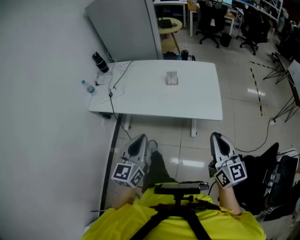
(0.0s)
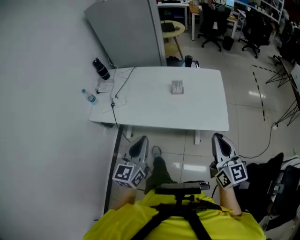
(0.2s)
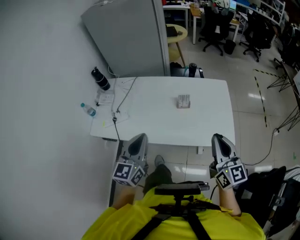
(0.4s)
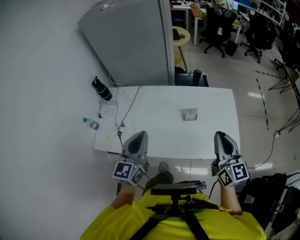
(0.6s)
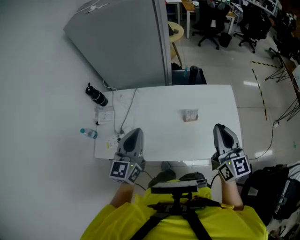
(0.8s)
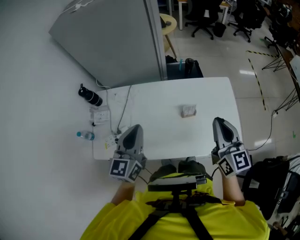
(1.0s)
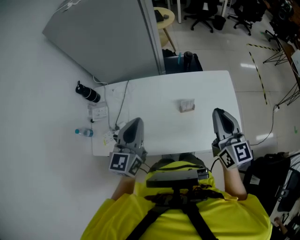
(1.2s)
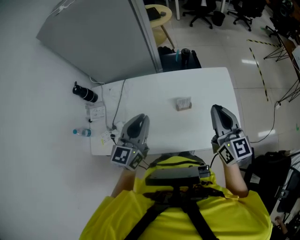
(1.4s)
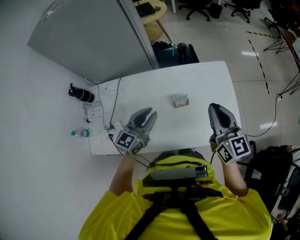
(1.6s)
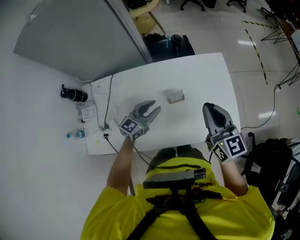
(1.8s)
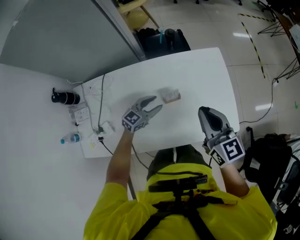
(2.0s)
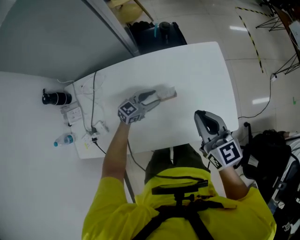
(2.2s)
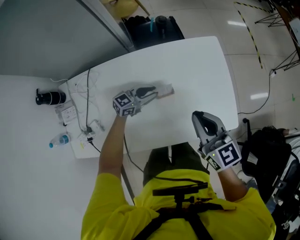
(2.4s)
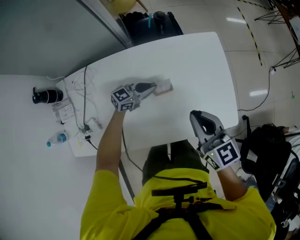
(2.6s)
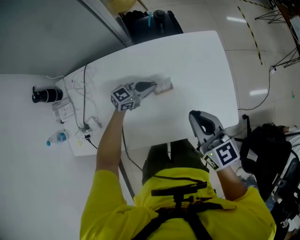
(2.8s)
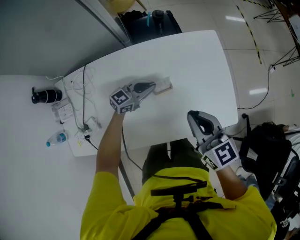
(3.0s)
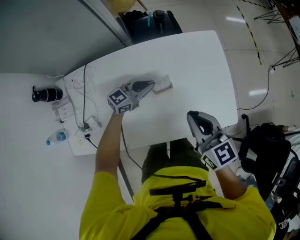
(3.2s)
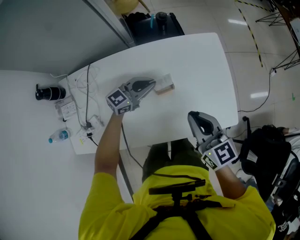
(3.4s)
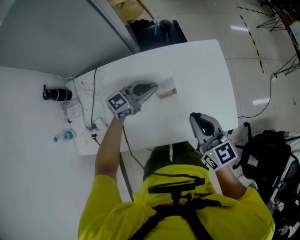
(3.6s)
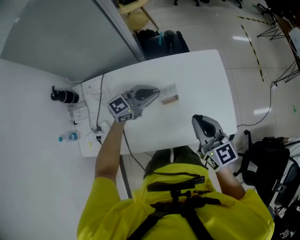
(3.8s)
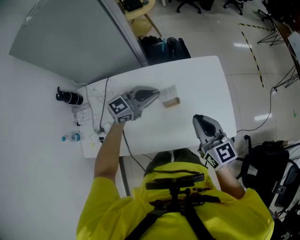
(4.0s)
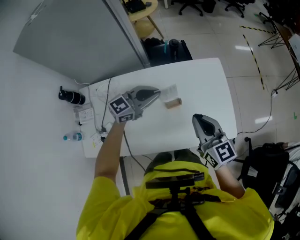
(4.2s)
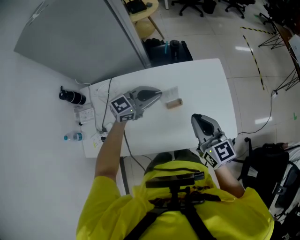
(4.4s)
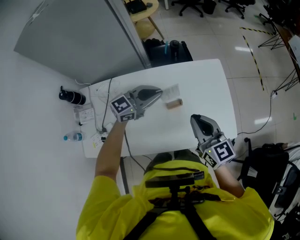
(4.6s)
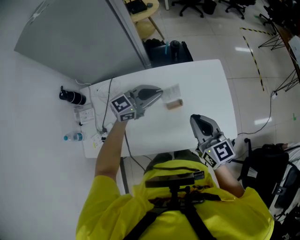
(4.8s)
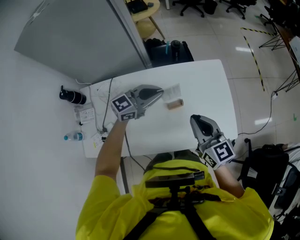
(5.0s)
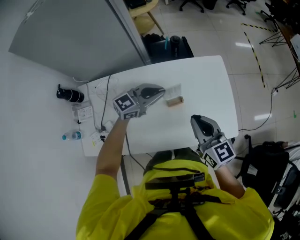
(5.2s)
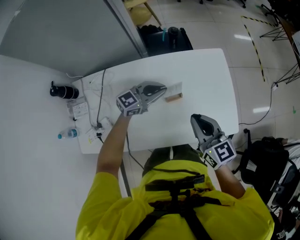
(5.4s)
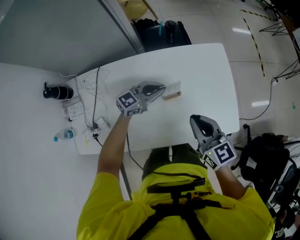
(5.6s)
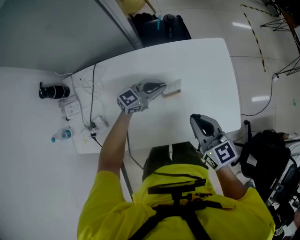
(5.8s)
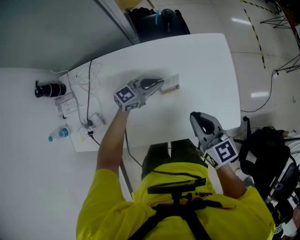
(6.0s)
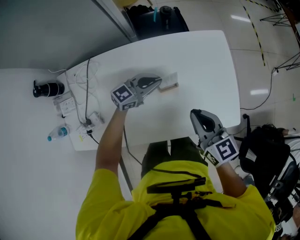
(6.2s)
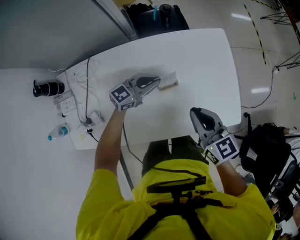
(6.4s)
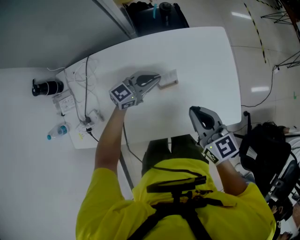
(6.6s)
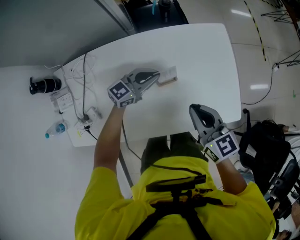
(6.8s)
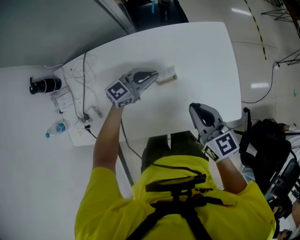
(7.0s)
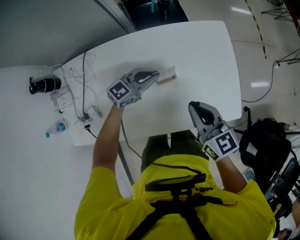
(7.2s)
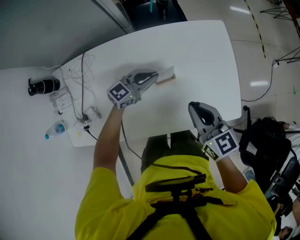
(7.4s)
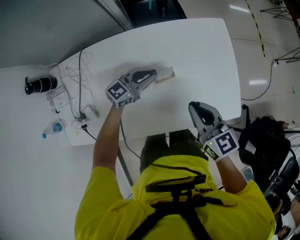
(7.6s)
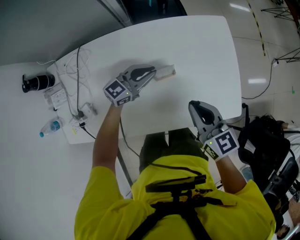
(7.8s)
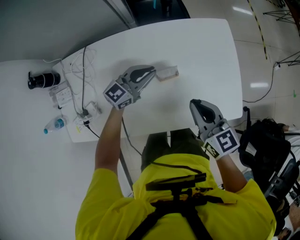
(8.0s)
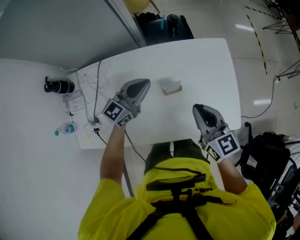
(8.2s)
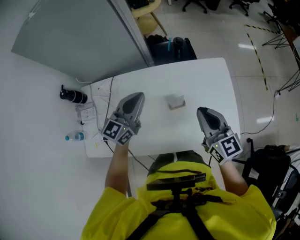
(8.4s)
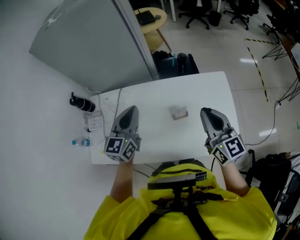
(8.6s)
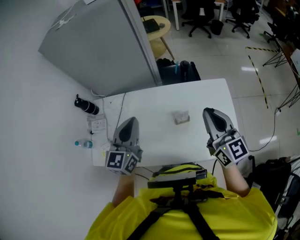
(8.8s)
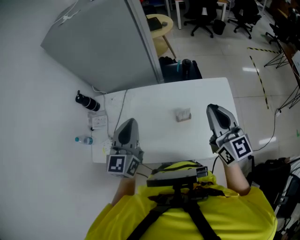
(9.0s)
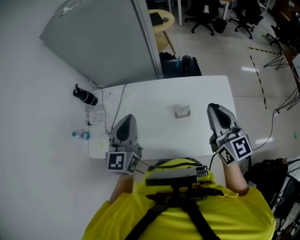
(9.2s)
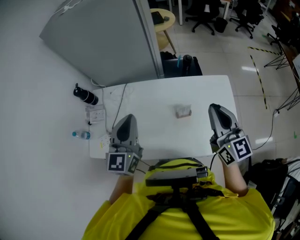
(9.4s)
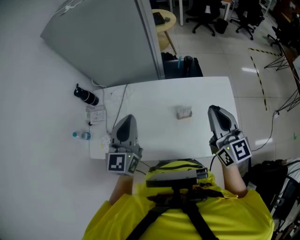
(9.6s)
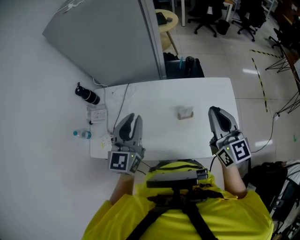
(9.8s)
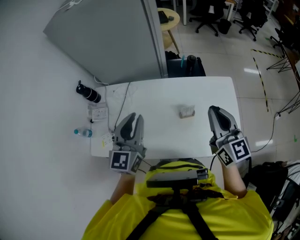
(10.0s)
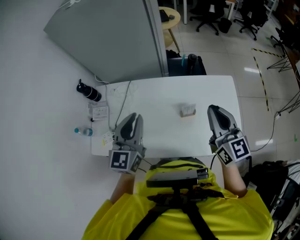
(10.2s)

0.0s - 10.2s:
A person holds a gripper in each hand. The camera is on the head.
0.0s - 1.4s: The pair of grippers is taken forward, approximately 40 cm.
1.4s - 3.0s: The right gripper travels downward by about 15 cm; the left gripper shifts about 35 cm downward and forward, rotates some 50 degrees, and opens and closes again.
3.0s - 4.4s: The left gripper goes roughly 20 cm upward. The right gripper travels upward by some 10 cm.
4.4s - 5.8s: The left gripper shifts about 15 cm downward. Meanwhile the right gripper travels downward by roughly 10 cm.
5.8s - 7.2s: The grippers stay close to where they were, moving slightly.
7.2s - 8.8s: The grippers both shift upward by some 25 cm. The right gripper changes its angle by some 30 degrees. Meanwhile the left gripper rotates about 50 degrees.
8.8s - 10.2s: There are only small adjustments of the grippers.

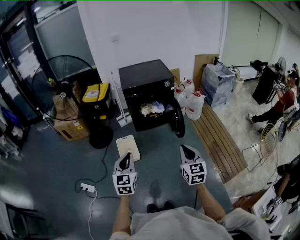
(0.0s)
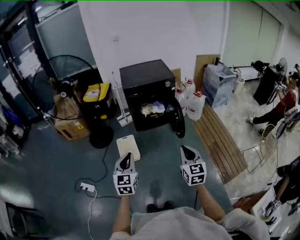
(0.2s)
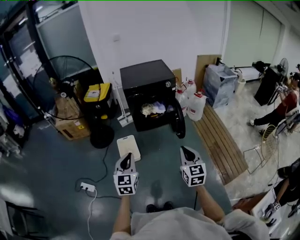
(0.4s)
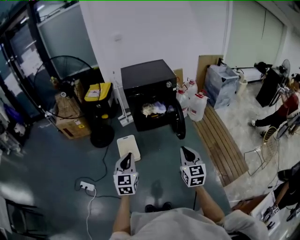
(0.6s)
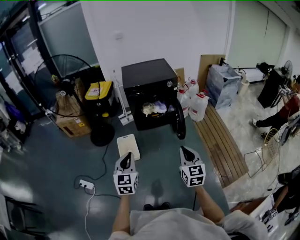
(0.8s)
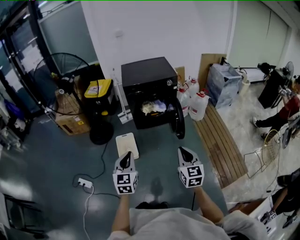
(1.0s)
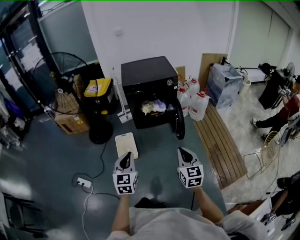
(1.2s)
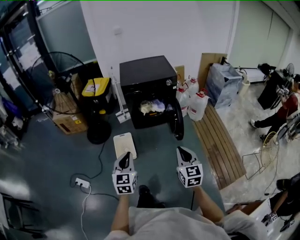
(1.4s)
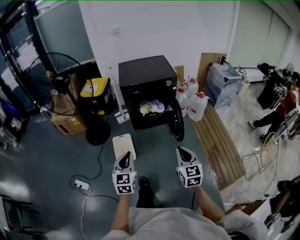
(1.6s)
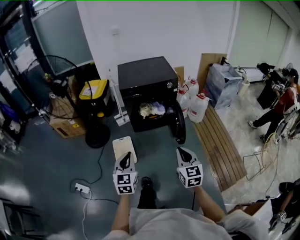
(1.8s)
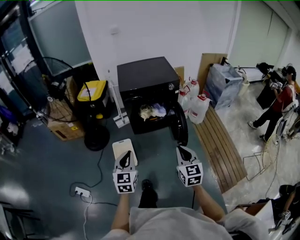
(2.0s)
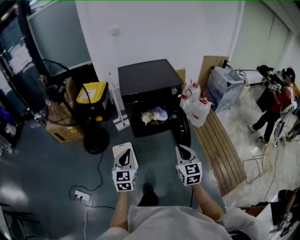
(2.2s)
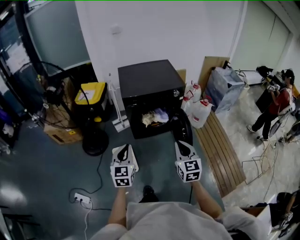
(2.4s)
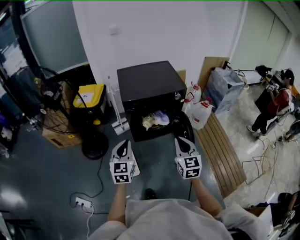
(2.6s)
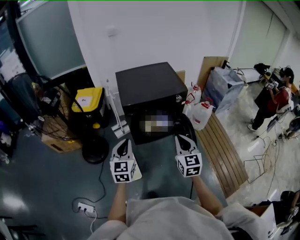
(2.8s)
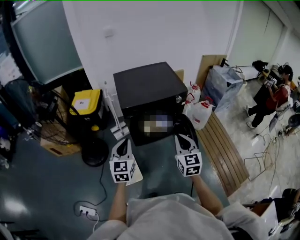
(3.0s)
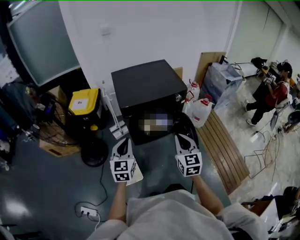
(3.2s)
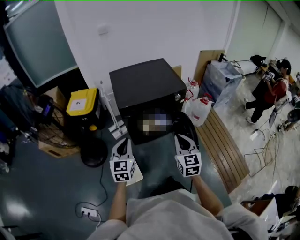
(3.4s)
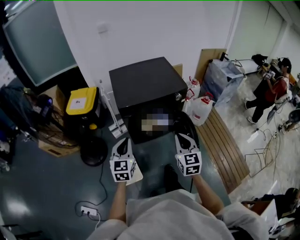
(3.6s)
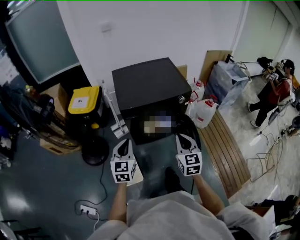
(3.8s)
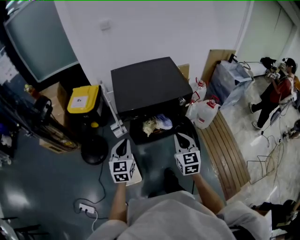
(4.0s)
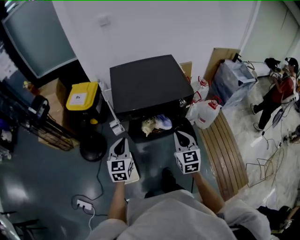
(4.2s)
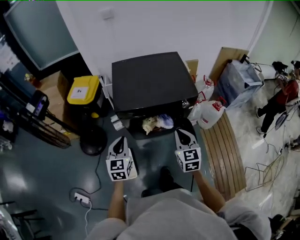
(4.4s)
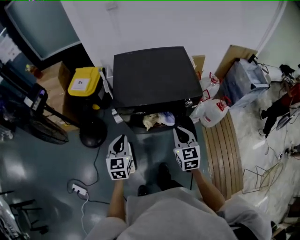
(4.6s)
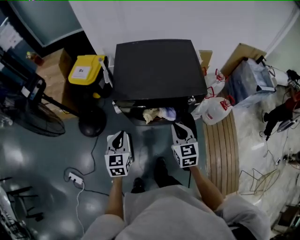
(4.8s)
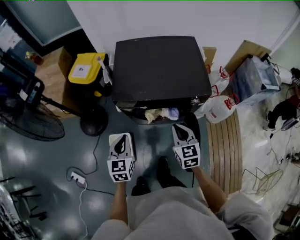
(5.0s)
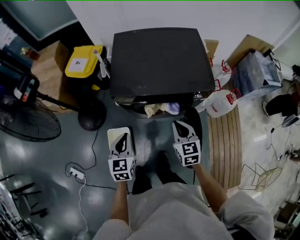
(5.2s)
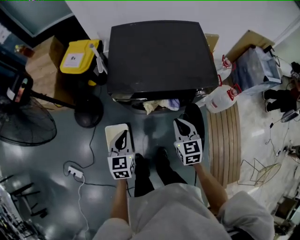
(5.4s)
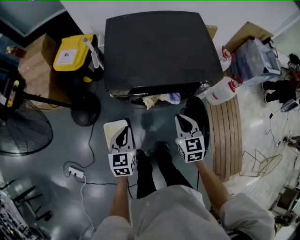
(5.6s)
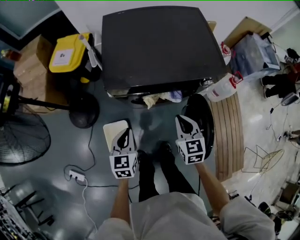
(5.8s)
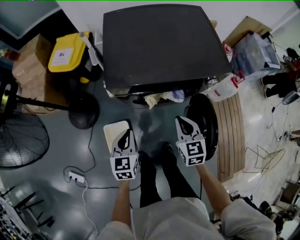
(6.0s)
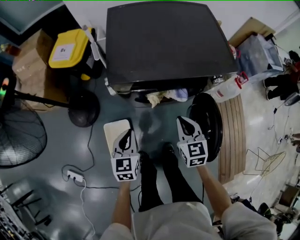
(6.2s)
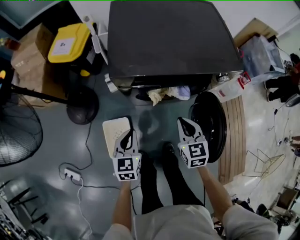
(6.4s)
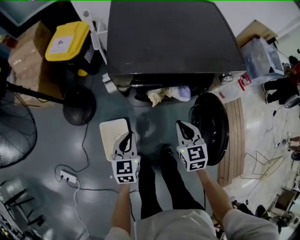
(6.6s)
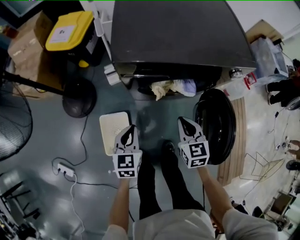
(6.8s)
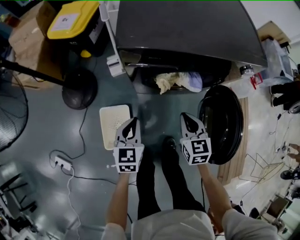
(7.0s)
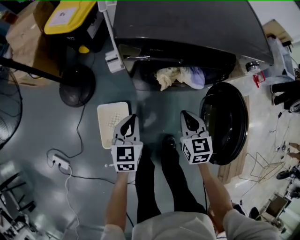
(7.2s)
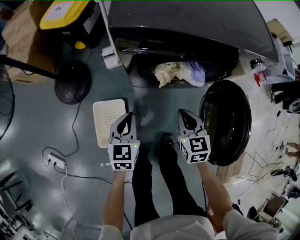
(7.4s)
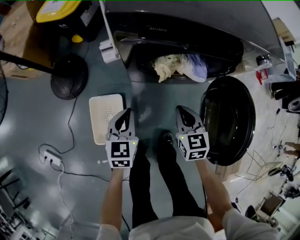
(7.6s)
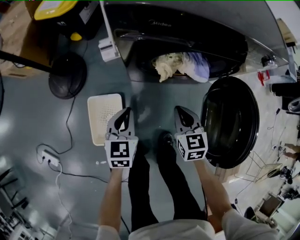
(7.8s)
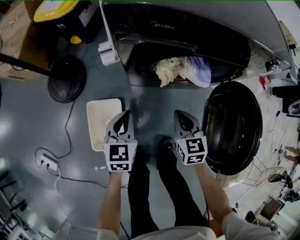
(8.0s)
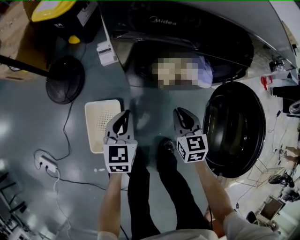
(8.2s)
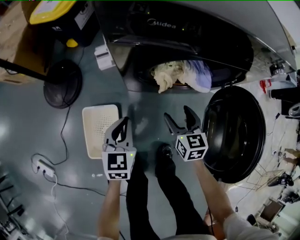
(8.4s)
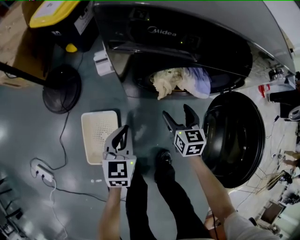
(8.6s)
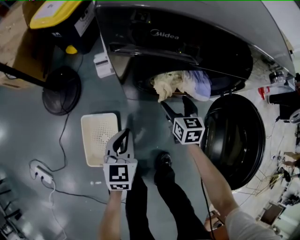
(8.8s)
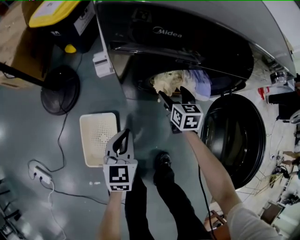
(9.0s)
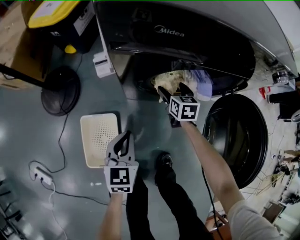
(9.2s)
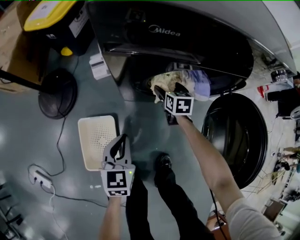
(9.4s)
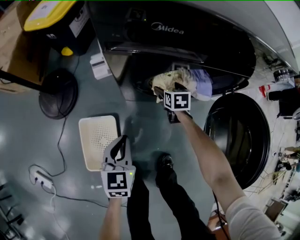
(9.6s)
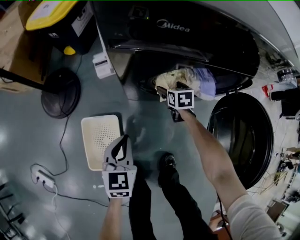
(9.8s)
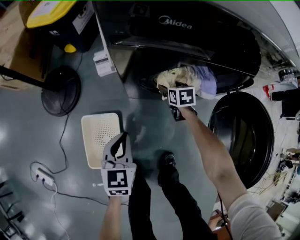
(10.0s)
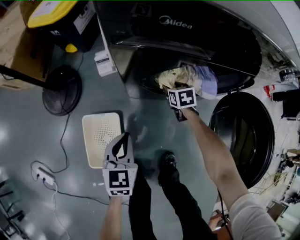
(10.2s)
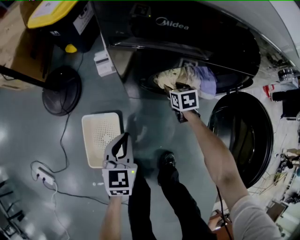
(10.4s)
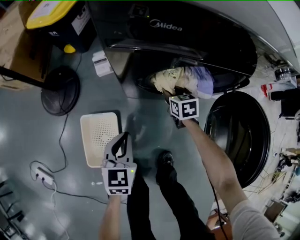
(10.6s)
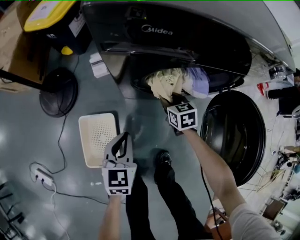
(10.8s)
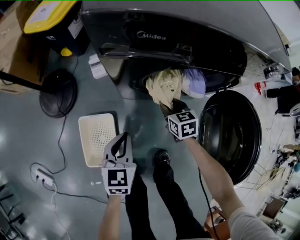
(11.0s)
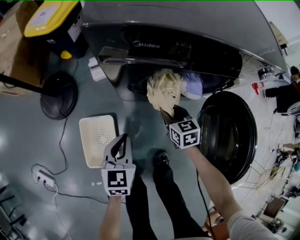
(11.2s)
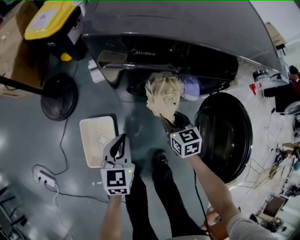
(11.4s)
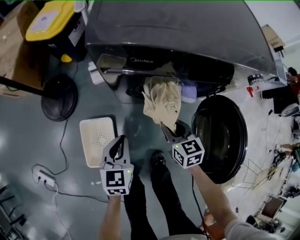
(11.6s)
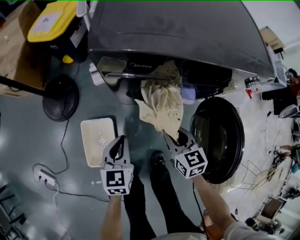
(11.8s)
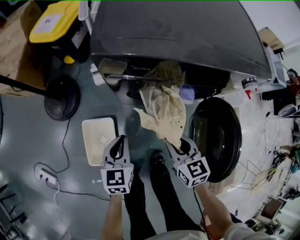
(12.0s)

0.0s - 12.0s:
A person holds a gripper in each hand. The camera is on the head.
0.0s - 1.6s: The left gripper shifts some 10 cm forward and to the right; the right gripper heads forward, covering some 10 cm.
1.6s - 3.0s: Both grippers travel together forward, roughly 35 cm.
3.0s - 4.4s: The two grippers go some 20 cm forward.
4.4s - 6.0s: The right gripper moves downward and forward, some 20 cm. Meanwhile the left gripper goes about 20 cm downward.
6.0s - 7.6s: The grippers both shift downward by roughly 25 cm.
7.6s - 9.0s: The left gripper is displaced downward by some 5 cm. The right gripper moves forward and downward, some 20 cm, and opens its fingers.
9.0s - 10.4s: The right gripper shifts roughly 10 cm downward, and closes.
10.4s - 12.0s: The left gripper shifts approximately 10 cm upward, while the right gripper travels upward and backward by approximately 35 cm.

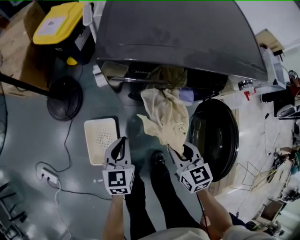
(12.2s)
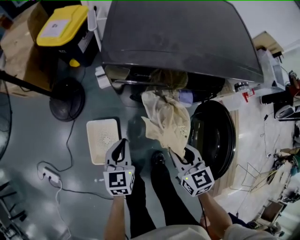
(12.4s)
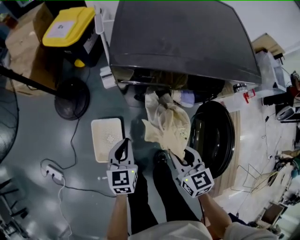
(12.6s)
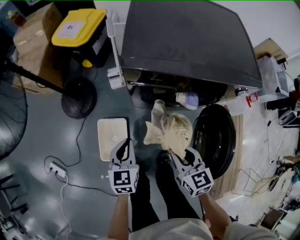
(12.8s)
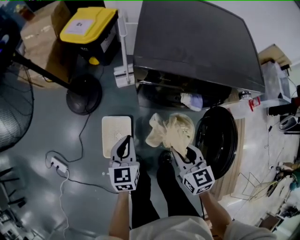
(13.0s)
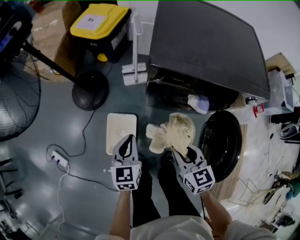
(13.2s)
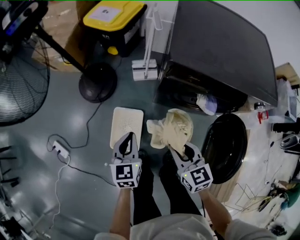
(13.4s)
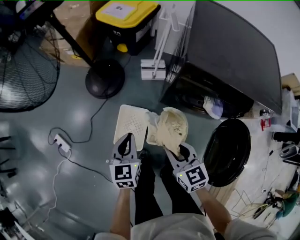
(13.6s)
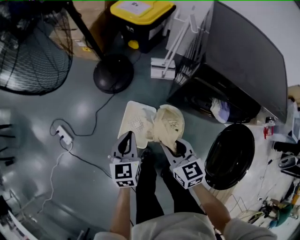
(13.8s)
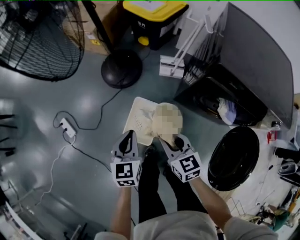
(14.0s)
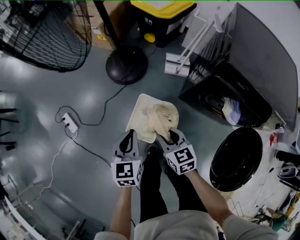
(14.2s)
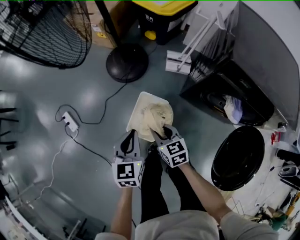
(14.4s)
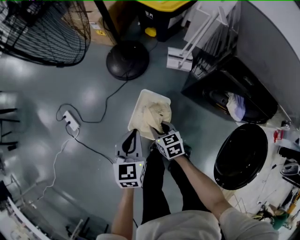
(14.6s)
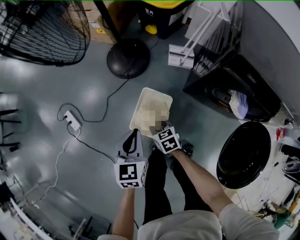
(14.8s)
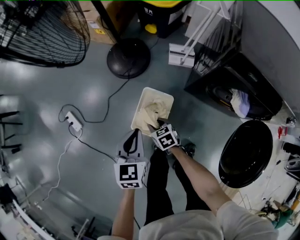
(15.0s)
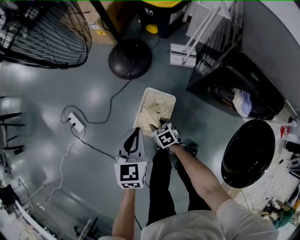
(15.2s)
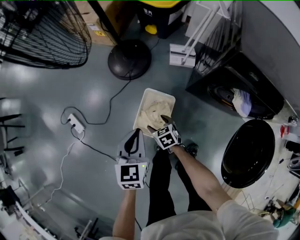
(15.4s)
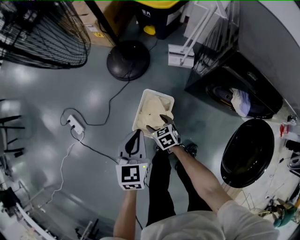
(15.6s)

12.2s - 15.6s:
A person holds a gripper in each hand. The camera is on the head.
12.2s - 13.8s: The left gripper ends up roughly 25 cm from where it was, and rotates some 20 degrees, while the right gripper shifts by roughly 25 cm, and turns by about 30 degrees.
13.8s - 15.6s: The right gripper goes roughly 30 cm downward and to the left, turns by roughly 30 degrees, and opens; the left gripper heads to the left, covering approximately 5 cm.
